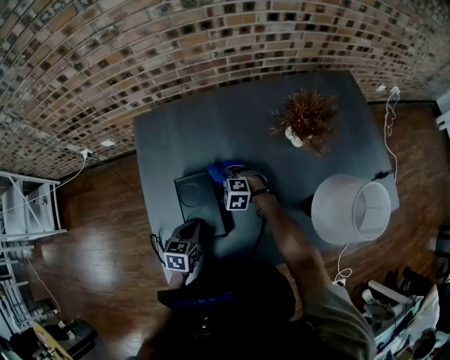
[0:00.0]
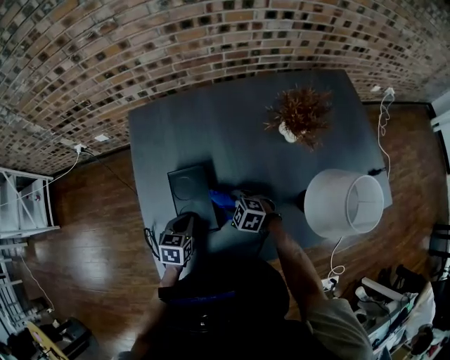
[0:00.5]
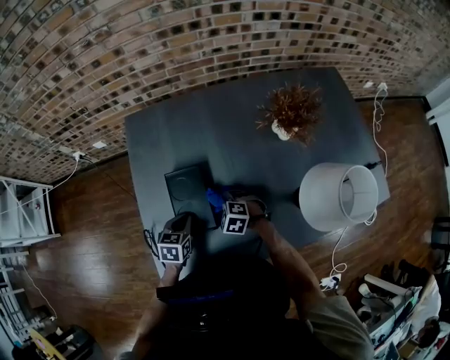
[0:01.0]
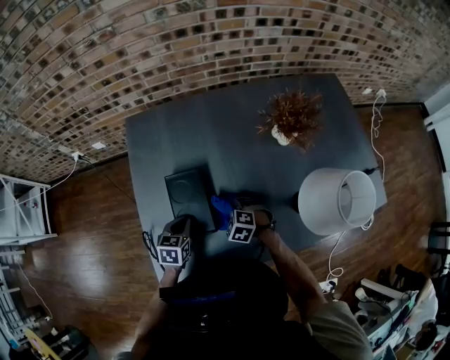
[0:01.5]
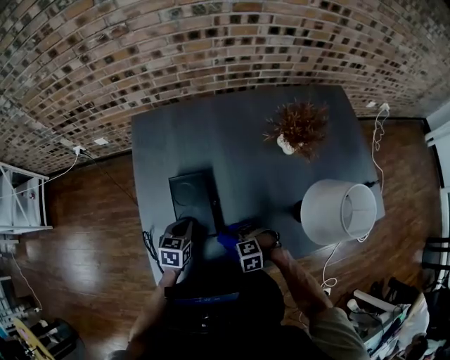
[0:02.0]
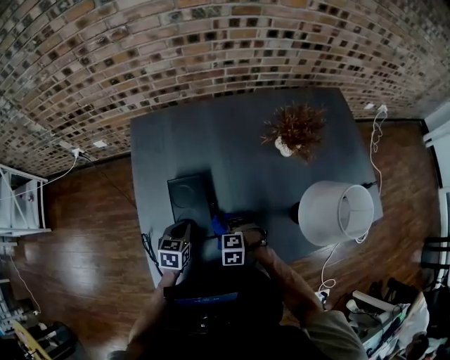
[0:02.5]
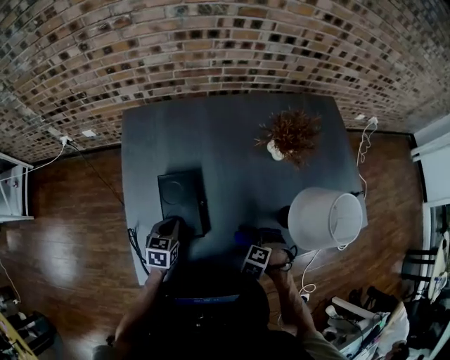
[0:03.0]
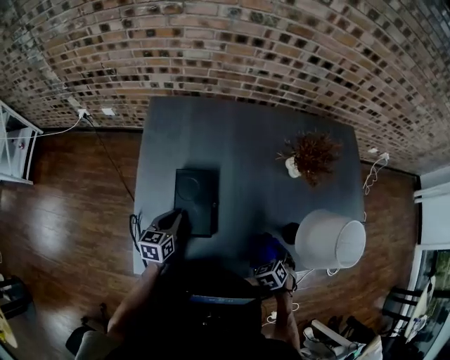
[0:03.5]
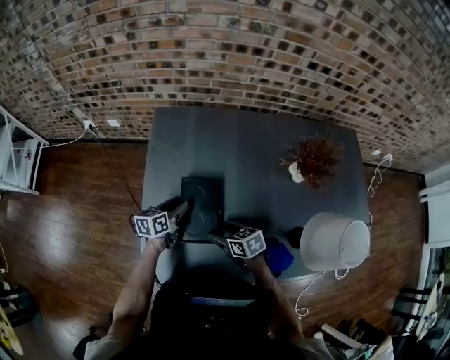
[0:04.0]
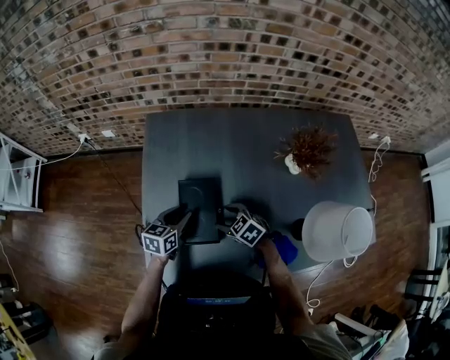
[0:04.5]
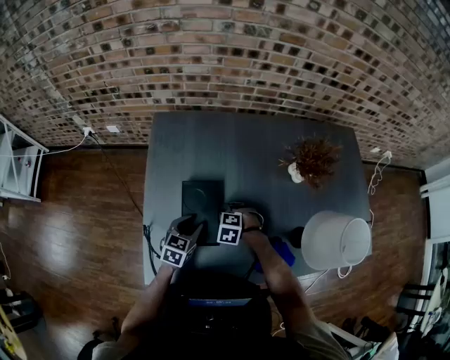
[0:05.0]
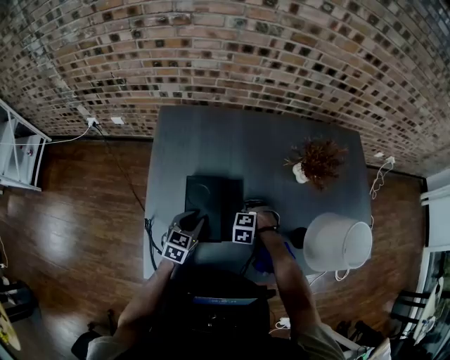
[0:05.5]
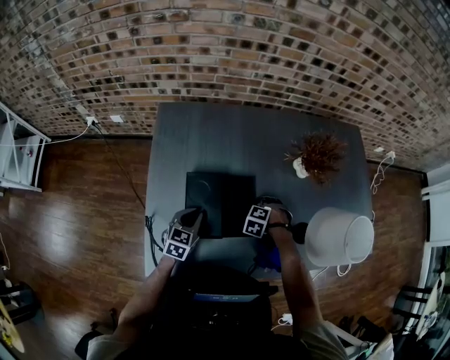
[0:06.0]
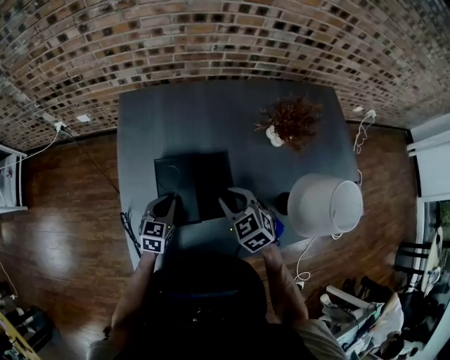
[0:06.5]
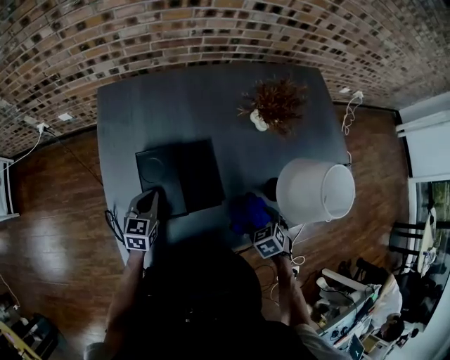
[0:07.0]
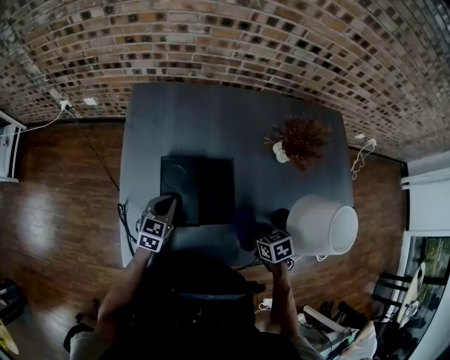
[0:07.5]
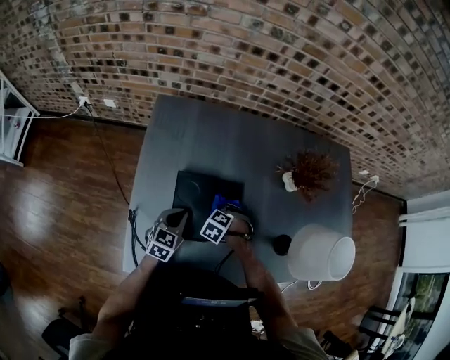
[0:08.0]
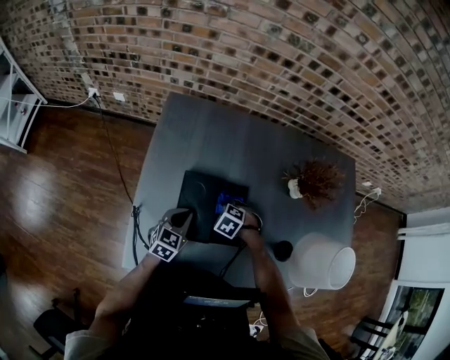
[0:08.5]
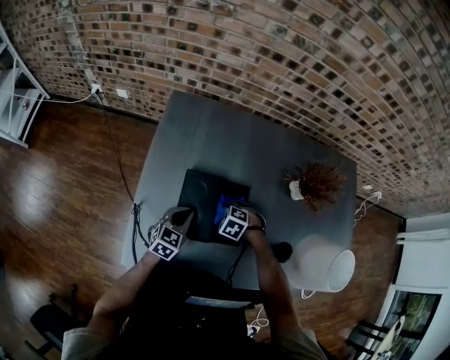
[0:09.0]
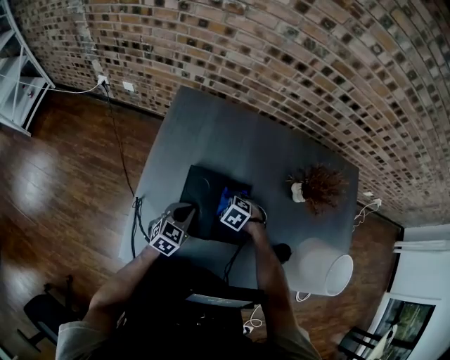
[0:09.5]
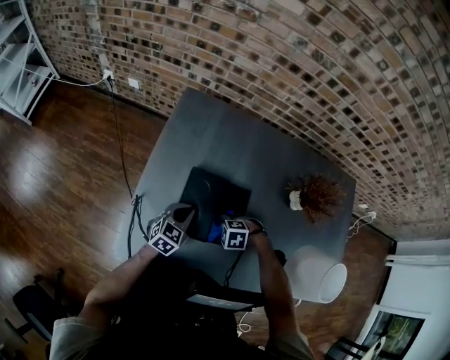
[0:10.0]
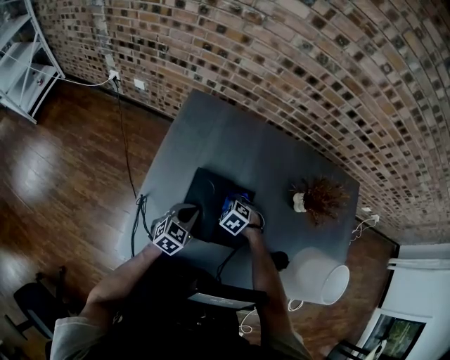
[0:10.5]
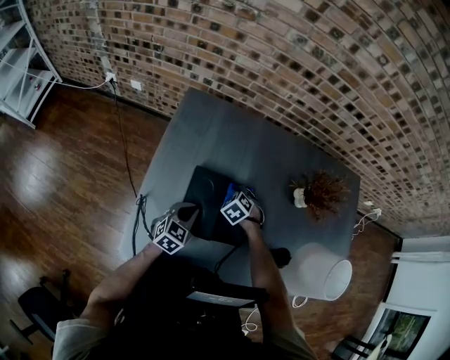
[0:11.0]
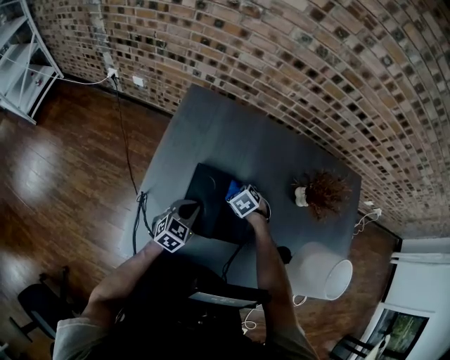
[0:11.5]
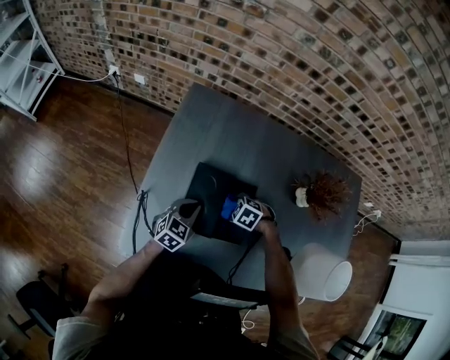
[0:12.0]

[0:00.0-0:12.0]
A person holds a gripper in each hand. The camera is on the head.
0:02.0 to 0:04.0: The left gripper changes place by roughly 10 cm, turns by roughly 30 degrees, and opens.
0:04.0 to 0:06.0: The left gripper ends up some 5 cm from where it was, turns by approximately 40 degrees, and closes.

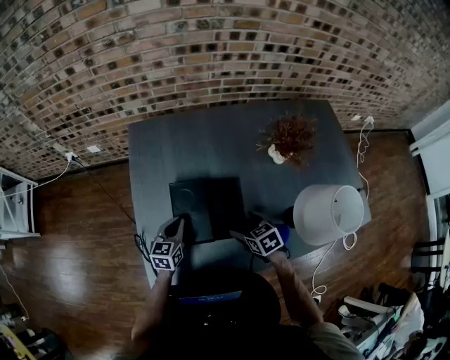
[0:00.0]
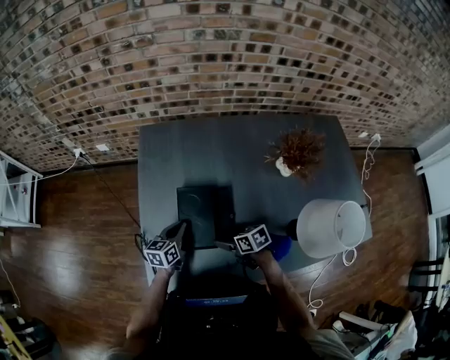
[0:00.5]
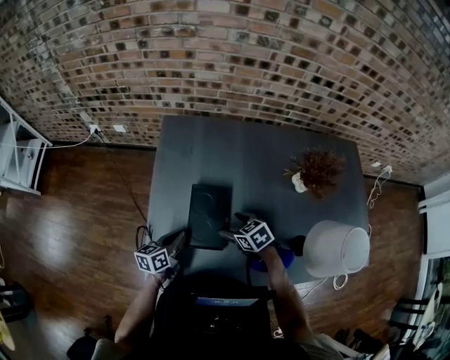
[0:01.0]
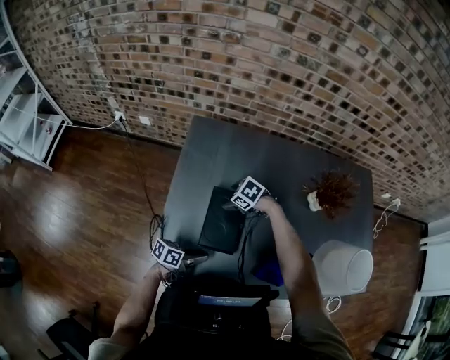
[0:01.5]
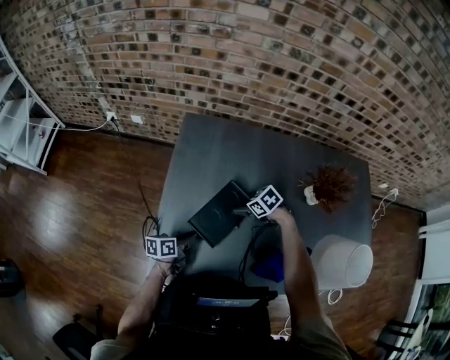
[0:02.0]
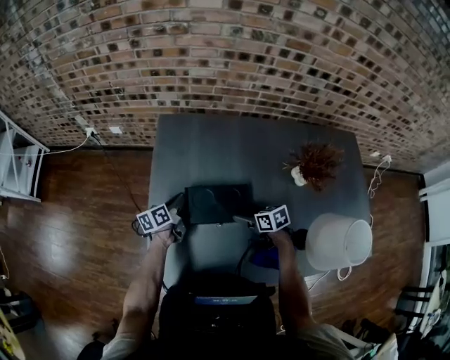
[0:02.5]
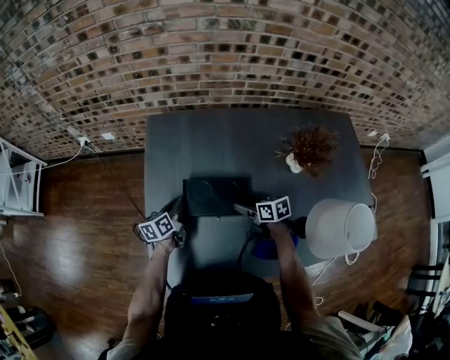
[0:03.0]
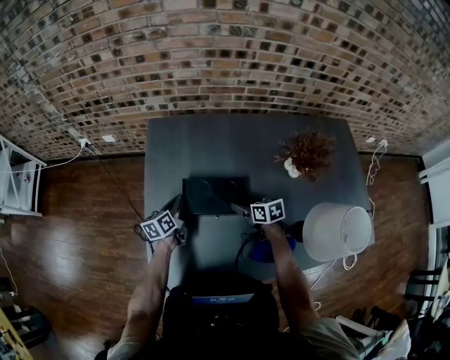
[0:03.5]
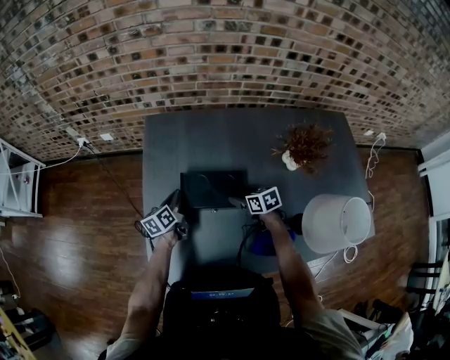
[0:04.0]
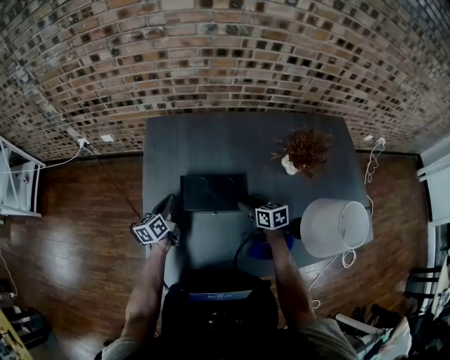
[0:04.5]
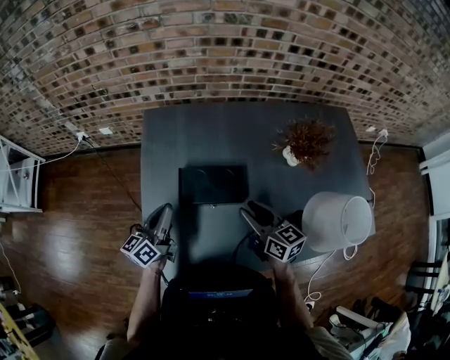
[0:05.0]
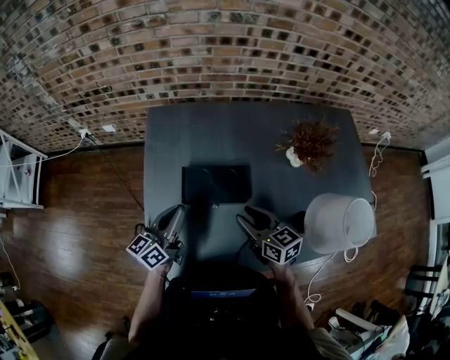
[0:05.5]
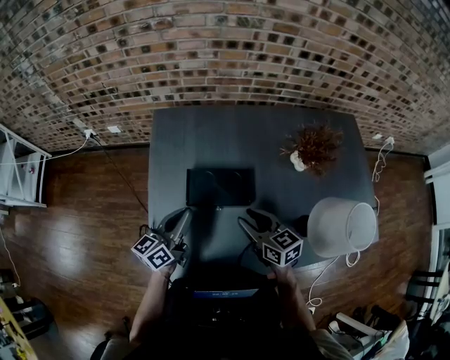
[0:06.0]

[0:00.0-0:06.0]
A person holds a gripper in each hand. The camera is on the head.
0:00.0 to 0:02.0: The left gripper rotates around the line of its fingers by approximately 40 degrees, counterclockwise from behind.
0:02.0 to 0:04.0: The left gripper moves approximately 15 cm, and rotates roughly 20 degrees.
0:04.0 to 0:06.0: The left gripper shifts approximately 15 cm upward, and swivels some 30 degrees.

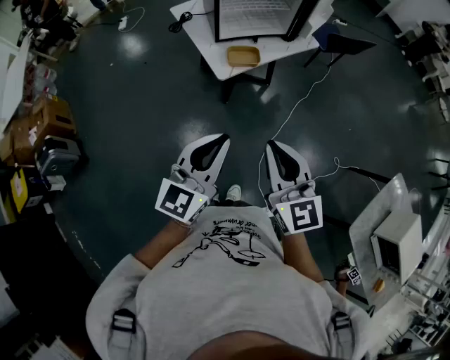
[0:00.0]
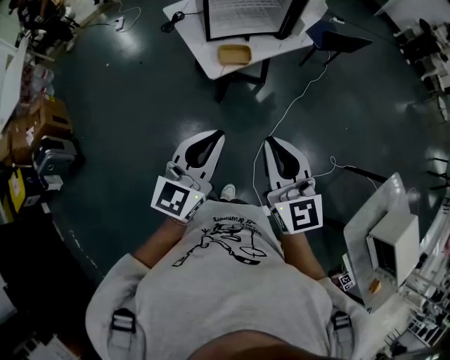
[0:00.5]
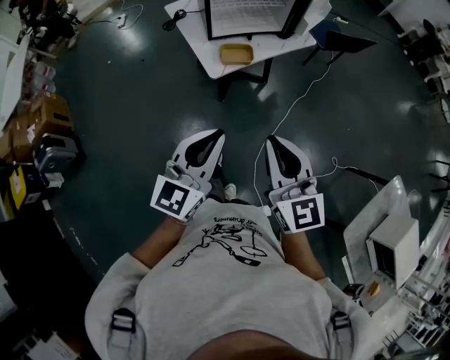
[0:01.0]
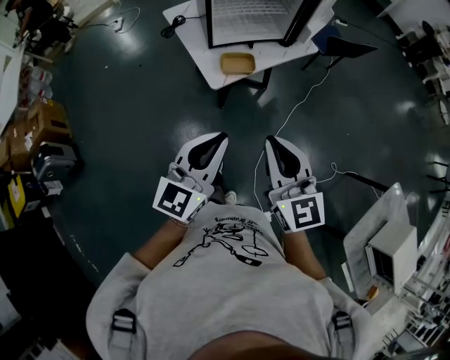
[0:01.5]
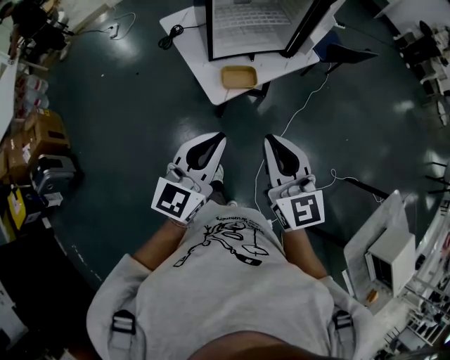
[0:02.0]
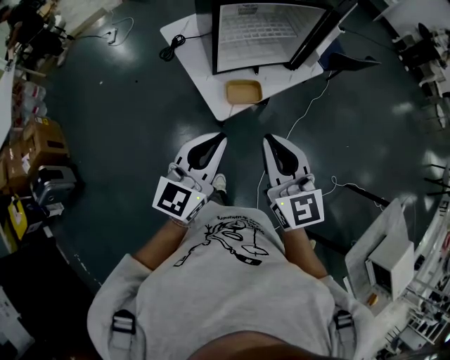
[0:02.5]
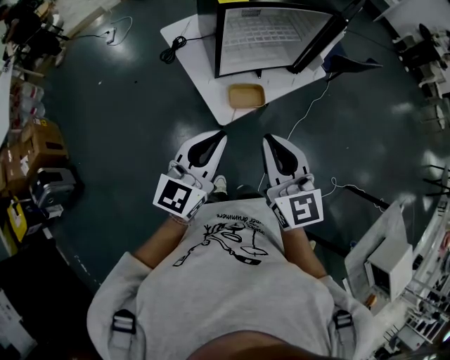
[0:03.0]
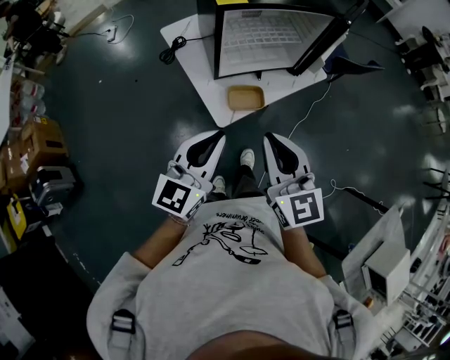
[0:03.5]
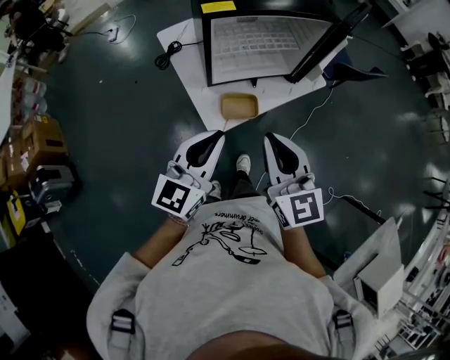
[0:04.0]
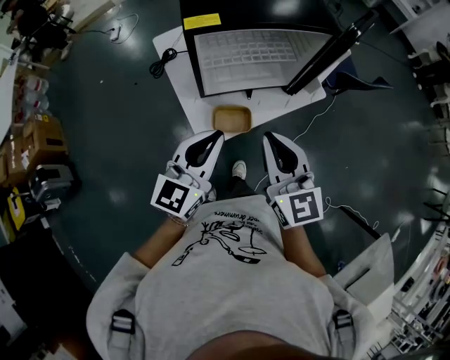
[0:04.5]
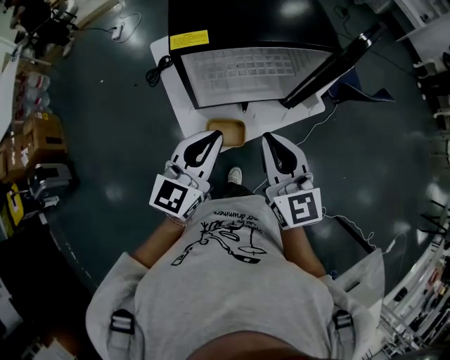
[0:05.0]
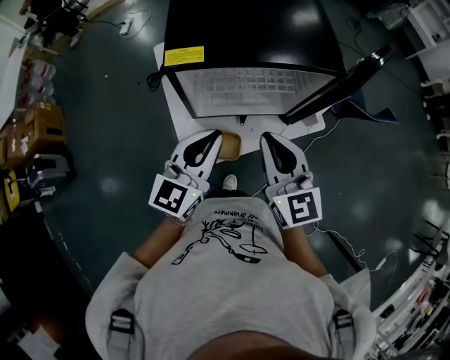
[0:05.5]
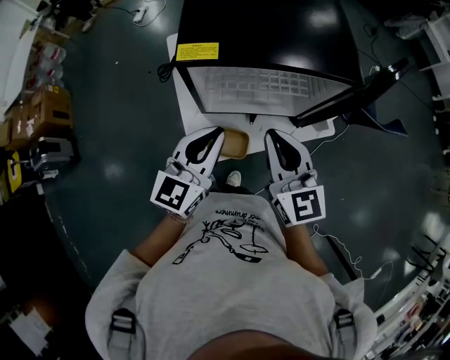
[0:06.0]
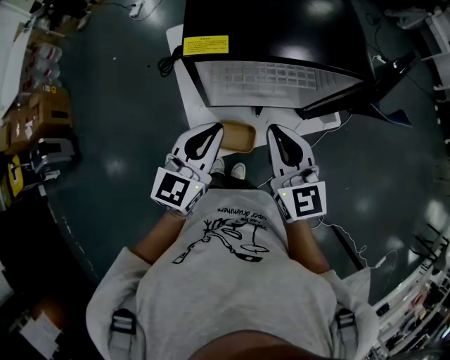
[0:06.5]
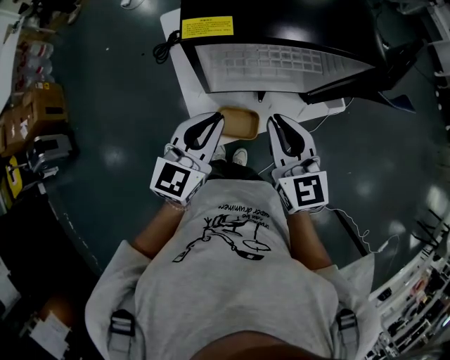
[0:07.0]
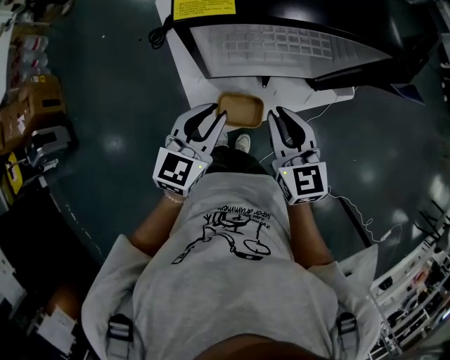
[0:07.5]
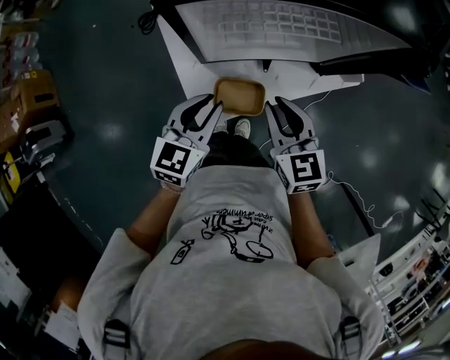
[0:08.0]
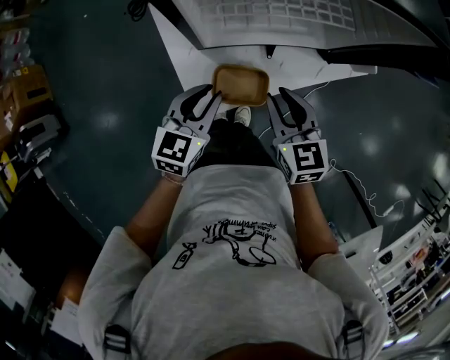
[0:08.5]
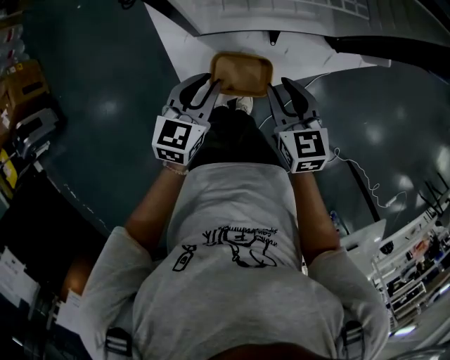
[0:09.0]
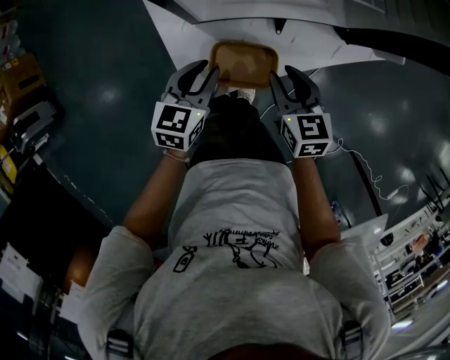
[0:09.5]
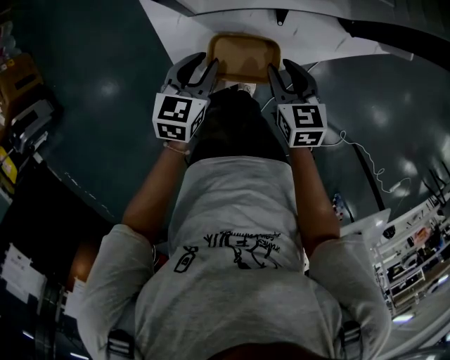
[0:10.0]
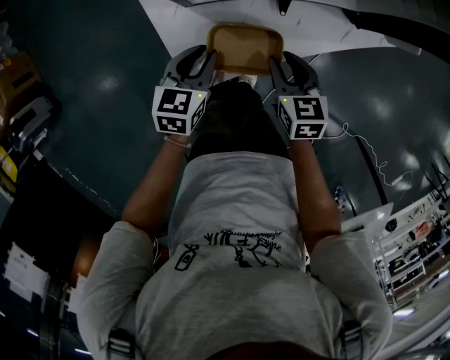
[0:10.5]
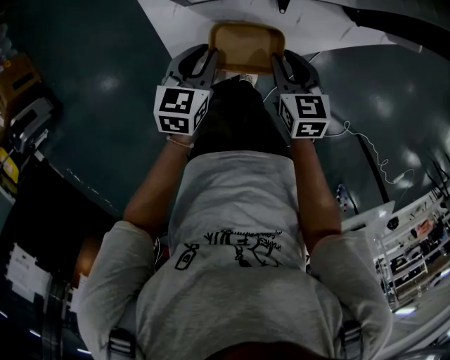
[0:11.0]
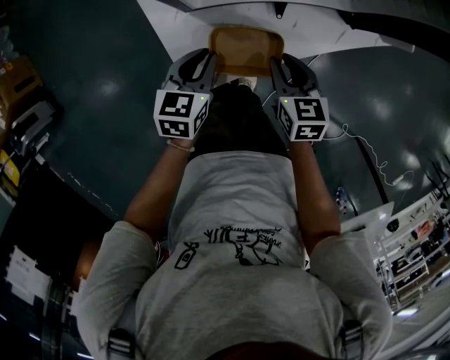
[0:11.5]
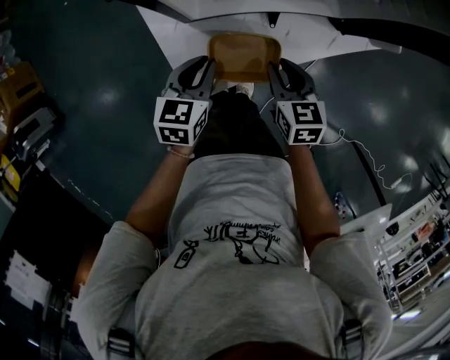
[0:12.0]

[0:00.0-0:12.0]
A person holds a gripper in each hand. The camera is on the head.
0:00.0 to 0:02.0: The grippers both shift forward by roughly 15 cm.
0:02.0 to 0:04.0: The two grippers go approximately 15 cm forward.
0:04.0 to 0:06.0: The two grippers go some 20 cm forward.
0:06.0 to 0:08.0: The two grippers go some 20 cm downward. The right gripper changes its angle by some 20 degrees; the left gripper turns by about 20 degrees.
0:08.0 to 0:10.0: Both grippers travel together downward, some 20 cm.
0:10.0 to 0:12.0: The grippers stay close to where they were, moving slightly.
